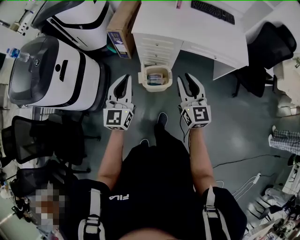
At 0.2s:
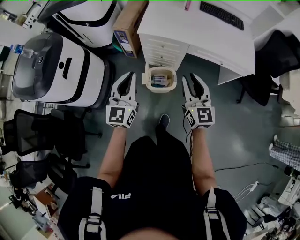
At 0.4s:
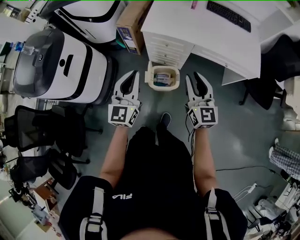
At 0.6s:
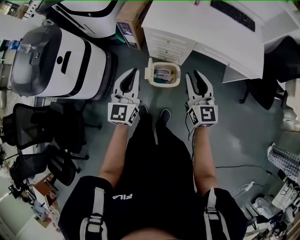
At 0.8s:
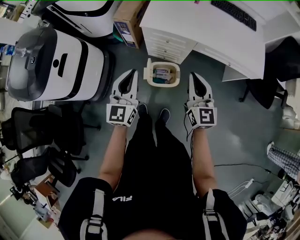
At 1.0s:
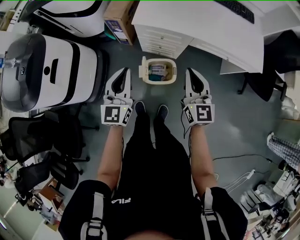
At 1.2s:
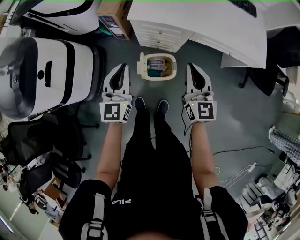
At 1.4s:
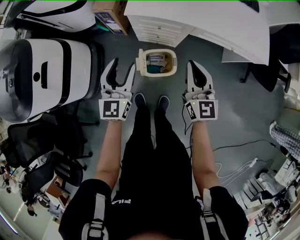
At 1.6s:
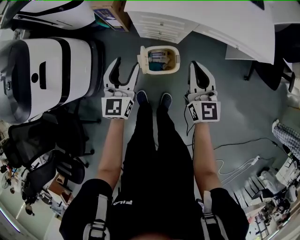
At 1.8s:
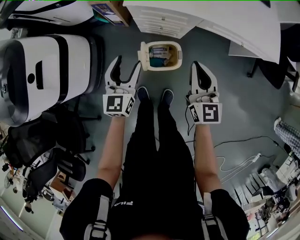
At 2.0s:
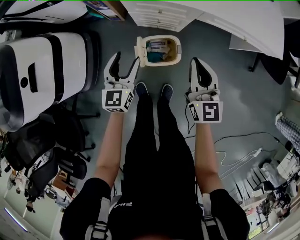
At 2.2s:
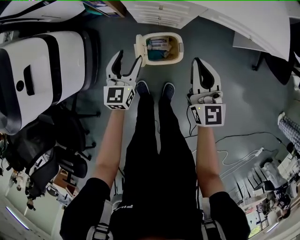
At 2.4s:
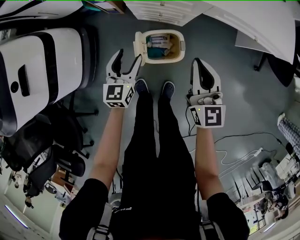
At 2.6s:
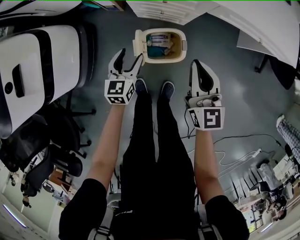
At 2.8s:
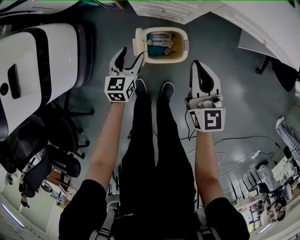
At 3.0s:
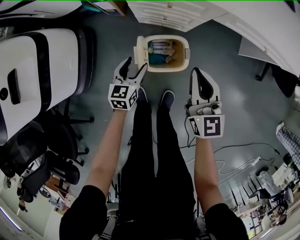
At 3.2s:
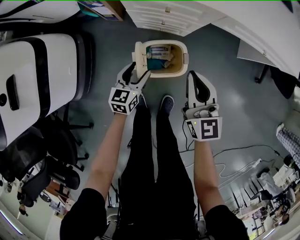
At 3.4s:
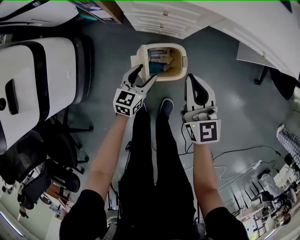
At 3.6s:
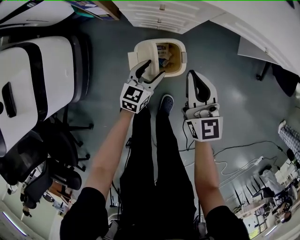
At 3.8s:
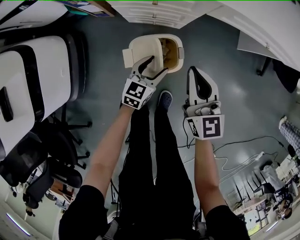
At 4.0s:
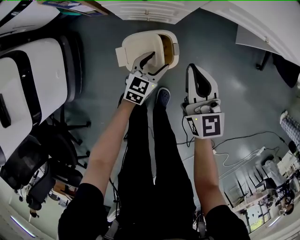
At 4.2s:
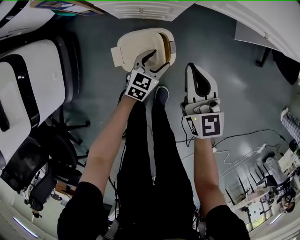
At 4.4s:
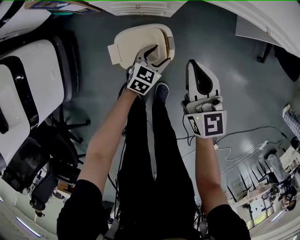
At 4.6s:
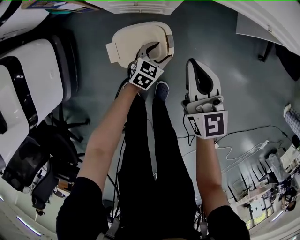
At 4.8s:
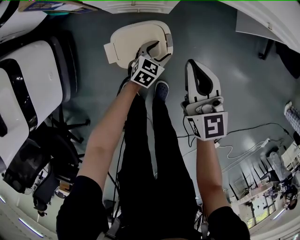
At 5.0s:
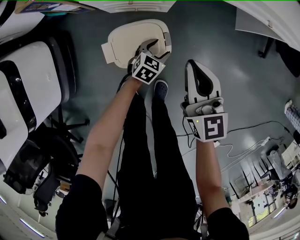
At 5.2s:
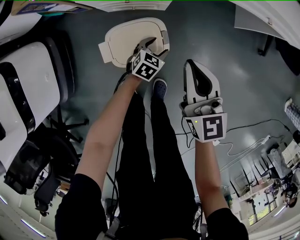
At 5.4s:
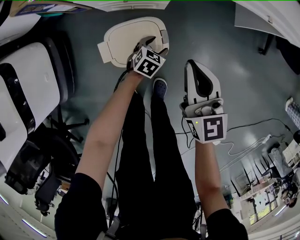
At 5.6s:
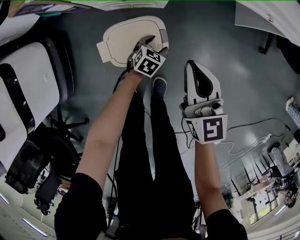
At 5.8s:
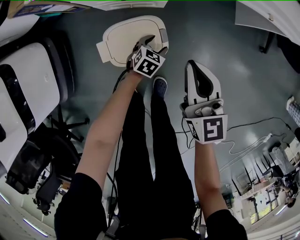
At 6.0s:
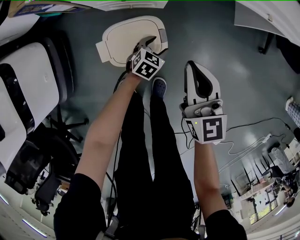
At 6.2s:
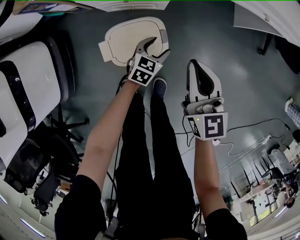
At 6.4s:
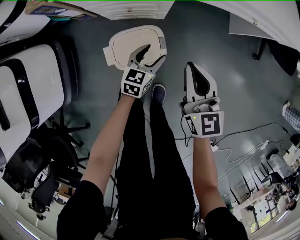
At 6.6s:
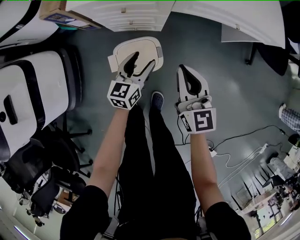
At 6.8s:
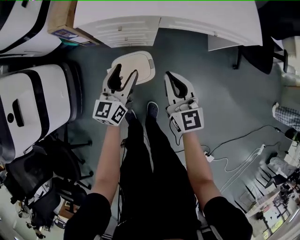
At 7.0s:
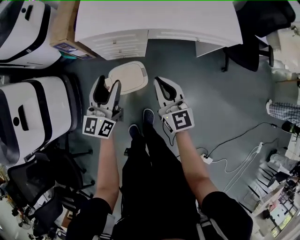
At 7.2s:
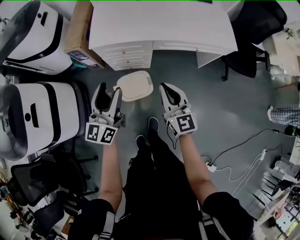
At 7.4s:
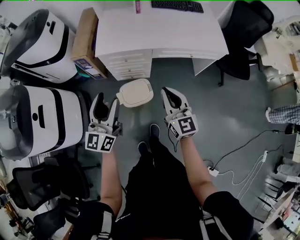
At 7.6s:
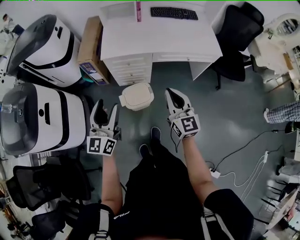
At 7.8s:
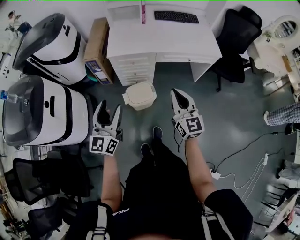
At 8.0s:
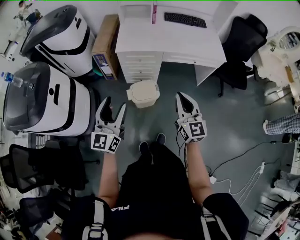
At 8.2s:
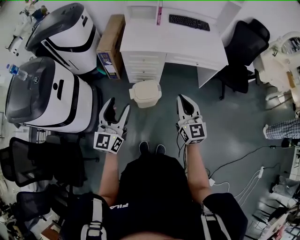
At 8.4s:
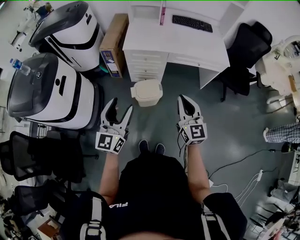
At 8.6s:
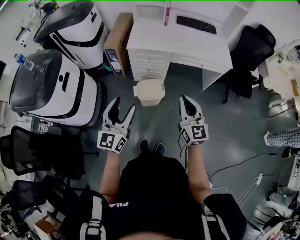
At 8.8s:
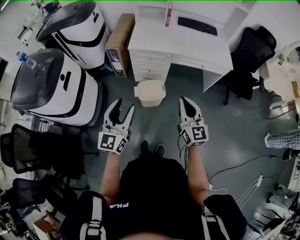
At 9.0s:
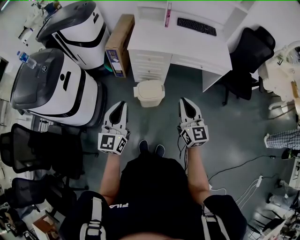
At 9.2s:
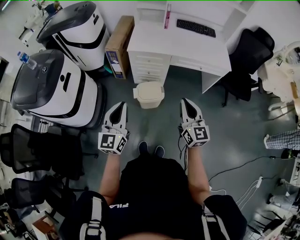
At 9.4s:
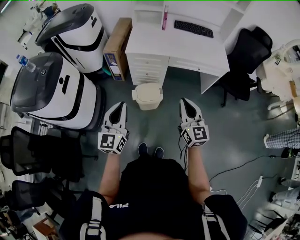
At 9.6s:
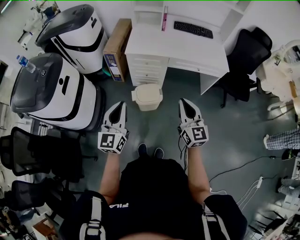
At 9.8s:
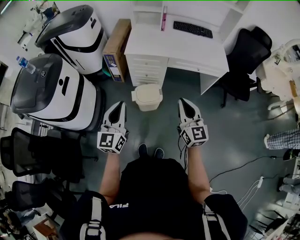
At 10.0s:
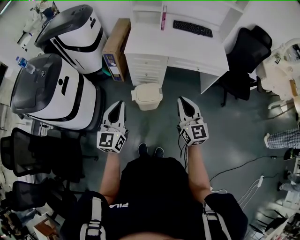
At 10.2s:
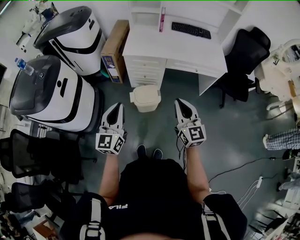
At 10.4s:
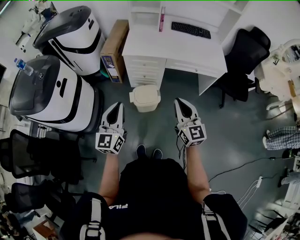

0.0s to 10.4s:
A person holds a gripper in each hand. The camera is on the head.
0.0s to 1.4s: Both grippers travel together forward and downward, approximately 20 cm. The left gripper opens. Meanwhile the right gripper closes up.
1.4s to 3.0s: The right gripper is displaced downward by approximately 25 cm; the left gripper heads downward, covering roughly 40 cm, and changes its angle by about 30 degrees.
3.0s to 4.4s: The right gripper goes approximately 10 cm downward and to the right, while the left gripper is displaced to the right and downward by some 25 cm, and swivels roughly 30 degrees.
4.4s to 6.0s: The right gripper ends up about 5 cm from where it was, while the left gripper moves downward, approximately 10 cm.
6.0s to 7.4s: The right gripper heads upward, covering some 40 cm. The left gripper is displaced upward by roughly 70 cm, and points its fingers some 60 degrees further upward.
7.4s to 9.0s: The right gripper moves backward and upward, approximately 25 cm. Meanwhile the left gripper moves backward, about 25 cm, and closes its fingers.
9.0s to 10.4s: There are only small adjustments of the grippers.

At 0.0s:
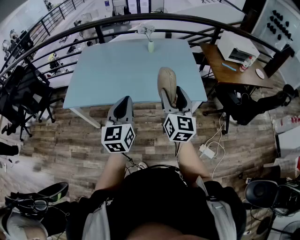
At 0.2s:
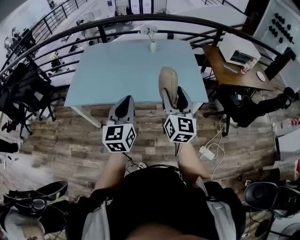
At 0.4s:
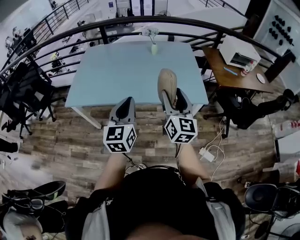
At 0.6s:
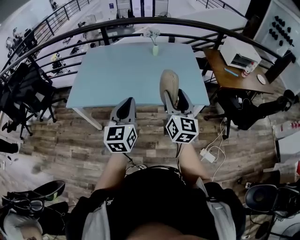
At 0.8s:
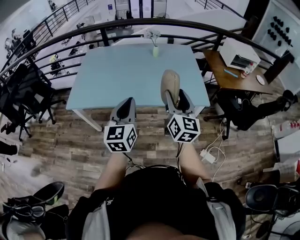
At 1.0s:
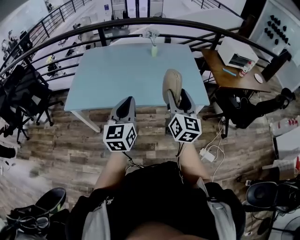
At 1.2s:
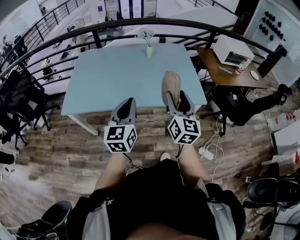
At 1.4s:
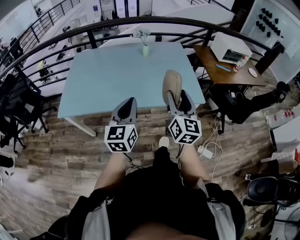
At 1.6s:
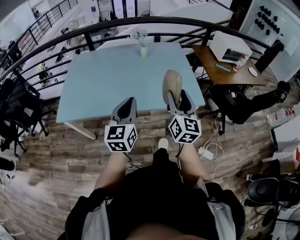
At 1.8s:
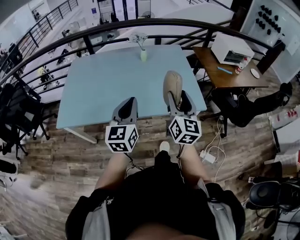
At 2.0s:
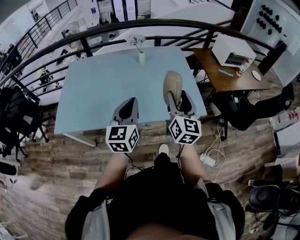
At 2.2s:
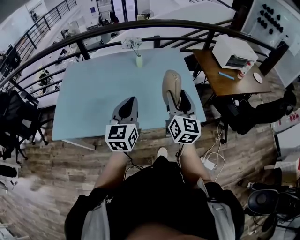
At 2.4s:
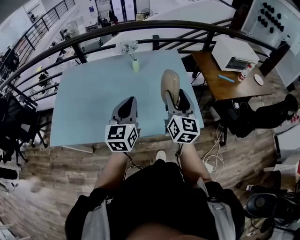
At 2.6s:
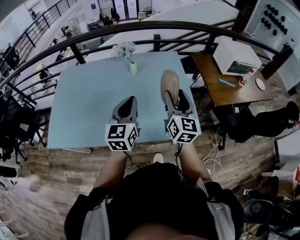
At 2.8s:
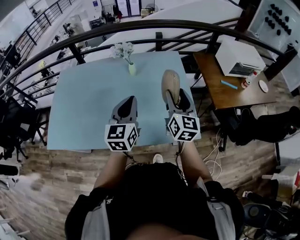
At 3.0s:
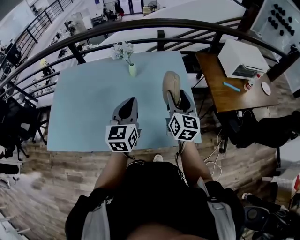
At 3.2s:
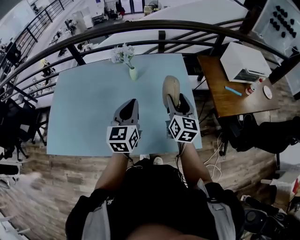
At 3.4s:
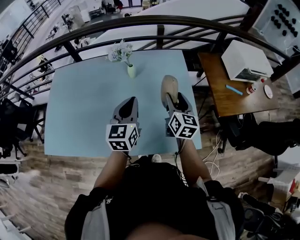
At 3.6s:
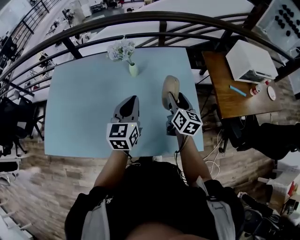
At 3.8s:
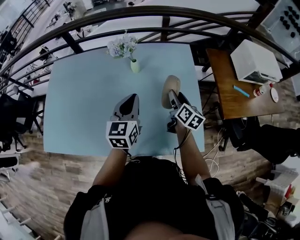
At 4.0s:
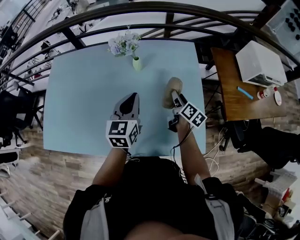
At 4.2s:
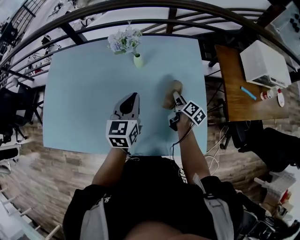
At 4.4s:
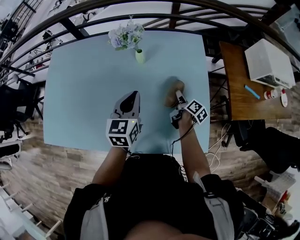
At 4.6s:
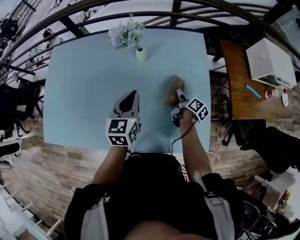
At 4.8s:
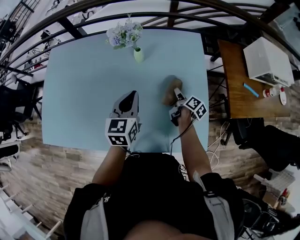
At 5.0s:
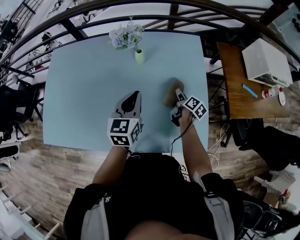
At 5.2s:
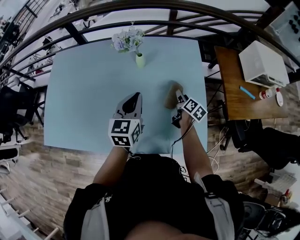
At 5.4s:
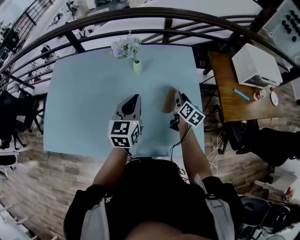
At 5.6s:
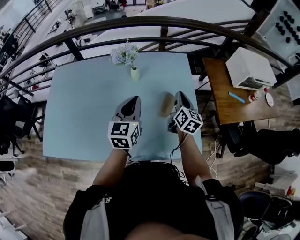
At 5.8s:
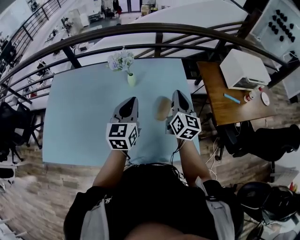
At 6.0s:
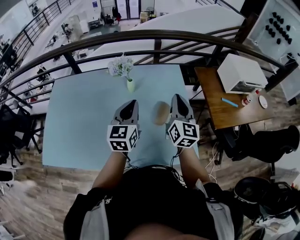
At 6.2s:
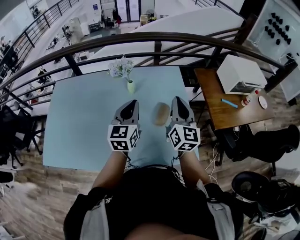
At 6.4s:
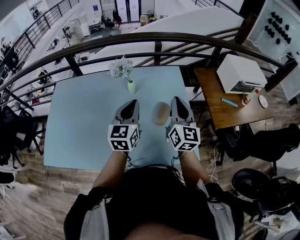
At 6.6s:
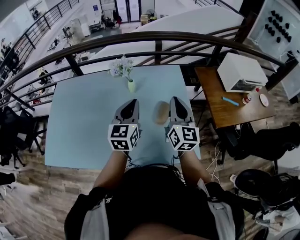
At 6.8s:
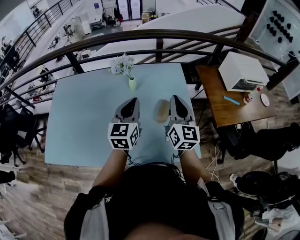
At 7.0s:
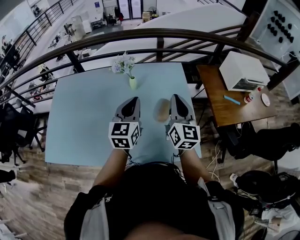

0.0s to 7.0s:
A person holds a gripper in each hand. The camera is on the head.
0.0s to 1.4s: The grippers make only small movements.
1.4s to 2.8s: Both grippers travel together forward, about 35 cm.
2.8s to 4.2s: The left gripper shifts about 20 cm forward and downward, while the right gripper travels downward and forward by approximately 35 cm, and rolls clockwise, seen from behind, by roughly 50 degrees.
4.2s to 5.6s: The right gripper heads upward, covering about 15 cm, rotates approximately 40 degrees, and closes its fingers. The left gripper goes roughly 5 cm upward.
5.6s to 7.0s: The right gripper goes roughly 15 cm upward and backward, and changes its angle by roughly 20 degrees.

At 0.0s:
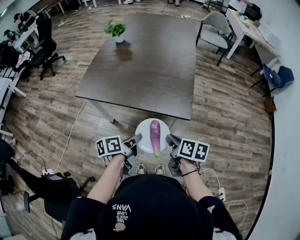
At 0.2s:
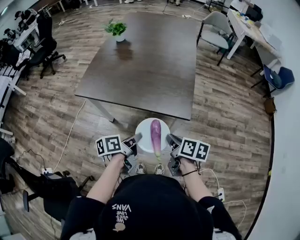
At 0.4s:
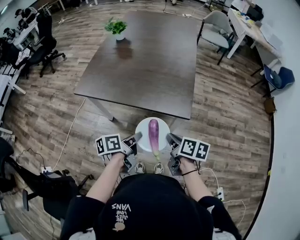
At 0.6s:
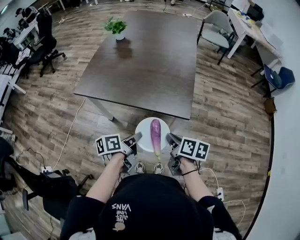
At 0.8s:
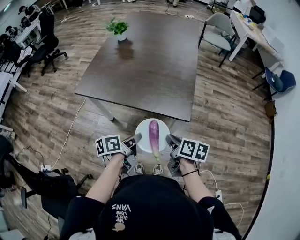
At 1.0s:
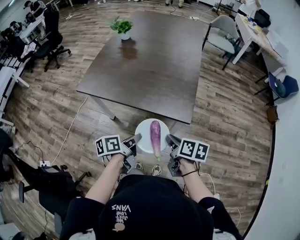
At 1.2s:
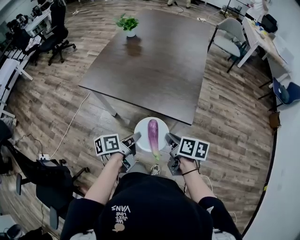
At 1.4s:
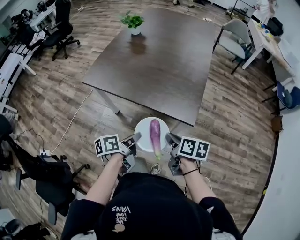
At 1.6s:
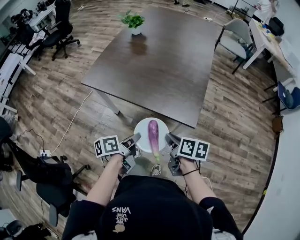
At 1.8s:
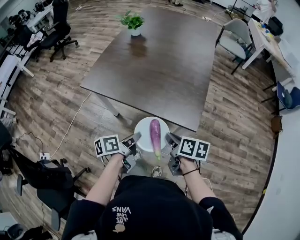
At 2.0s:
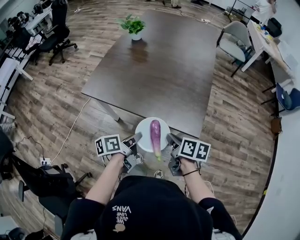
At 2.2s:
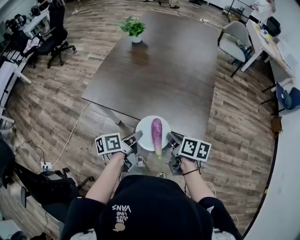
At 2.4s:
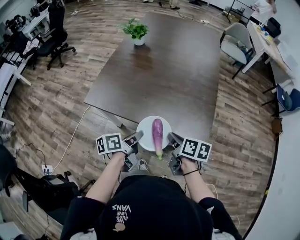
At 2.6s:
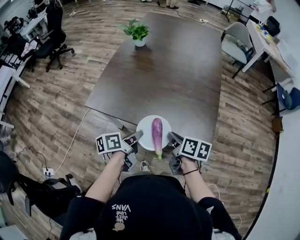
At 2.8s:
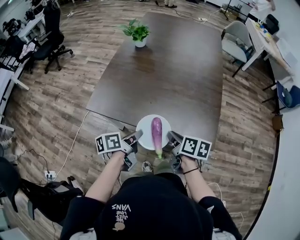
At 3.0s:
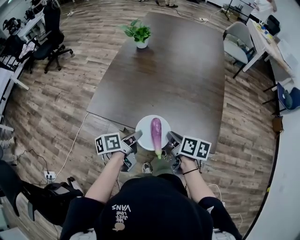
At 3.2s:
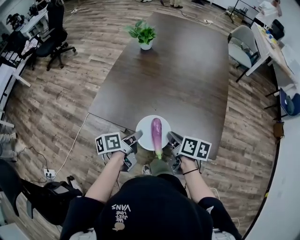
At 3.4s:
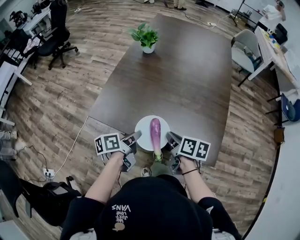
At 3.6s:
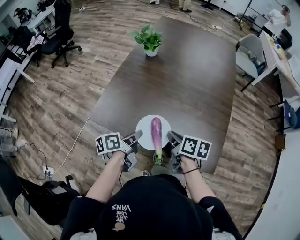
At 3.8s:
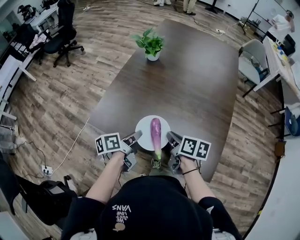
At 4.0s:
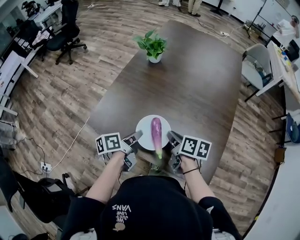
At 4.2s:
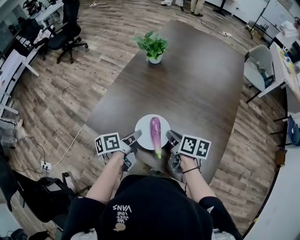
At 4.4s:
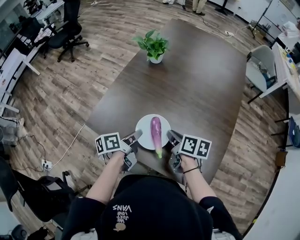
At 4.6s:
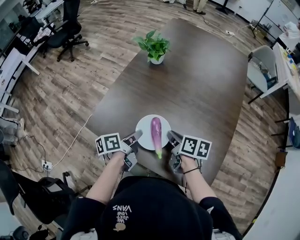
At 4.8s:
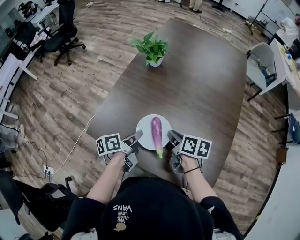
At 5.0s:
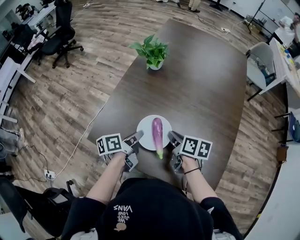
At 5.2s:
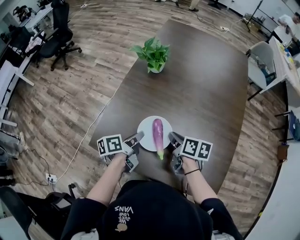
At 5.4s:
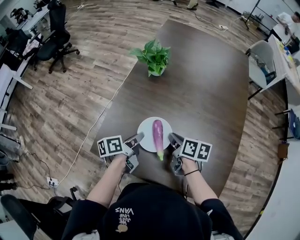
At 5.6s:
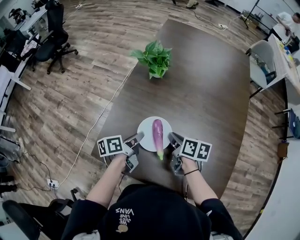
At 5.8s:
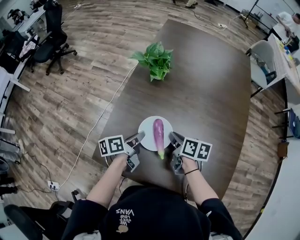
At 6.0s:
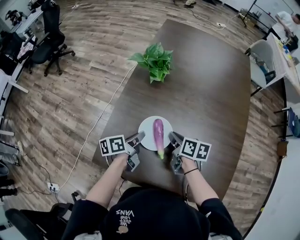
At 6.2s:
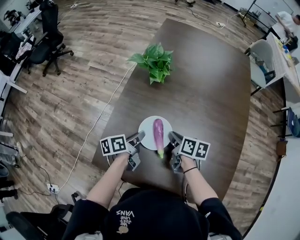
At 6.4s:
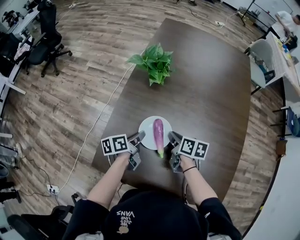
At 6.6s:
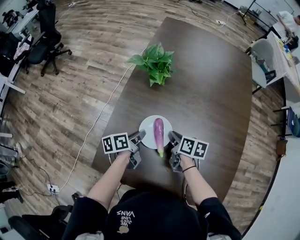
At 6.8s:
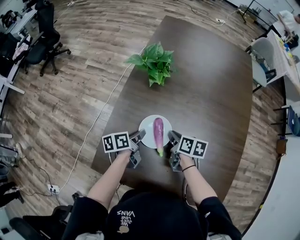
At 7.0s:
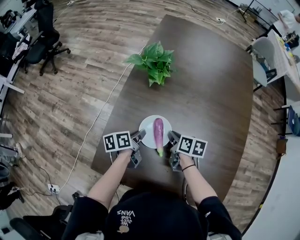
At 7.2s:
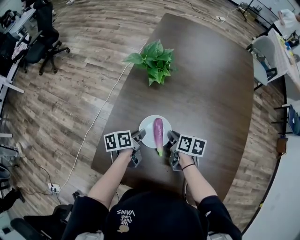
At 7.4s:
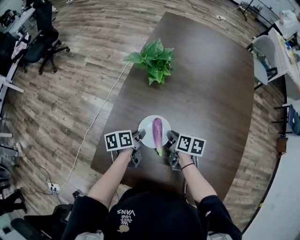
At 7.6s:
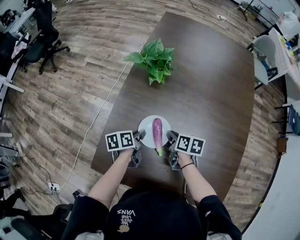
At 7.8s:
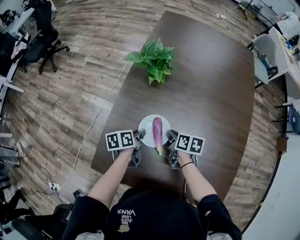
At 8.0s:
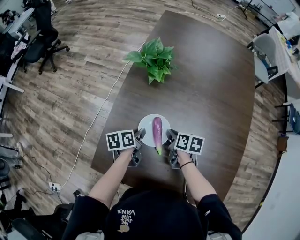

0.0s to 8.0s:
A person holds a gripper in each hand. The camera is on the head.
0.0s to 1.6s: The right gripper moves approximately 5 cm.
1.6s to 3.2s: The two grippers go about 25 cm forward and to the left.
3.2s to 4.8s: Both grippers move forward, some 20 cm.
4.8s to 6.4s: The right gripper is displaced forward, downward and to the left by approximately 15 cm. Meanwhile the left gripper moves forward, roughly 15 cm.
6.4s to 8.0s: There are only small adjustments of the grippers.
